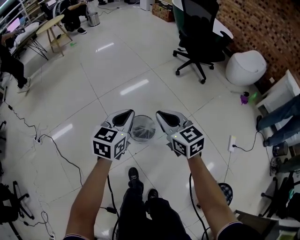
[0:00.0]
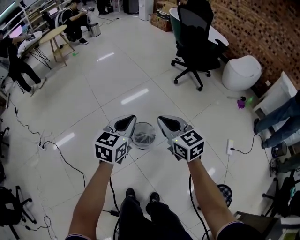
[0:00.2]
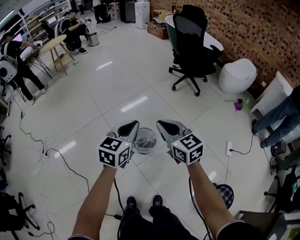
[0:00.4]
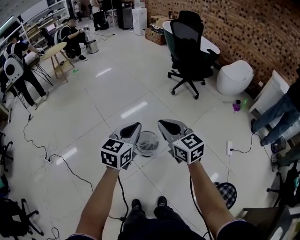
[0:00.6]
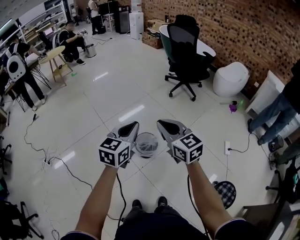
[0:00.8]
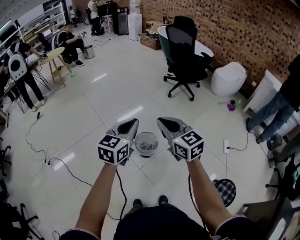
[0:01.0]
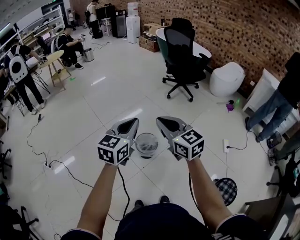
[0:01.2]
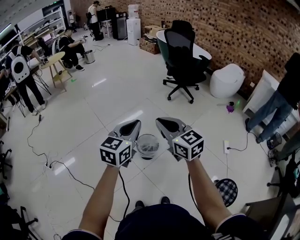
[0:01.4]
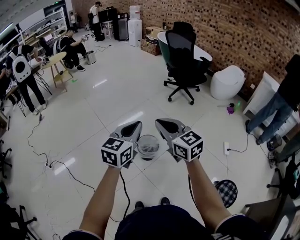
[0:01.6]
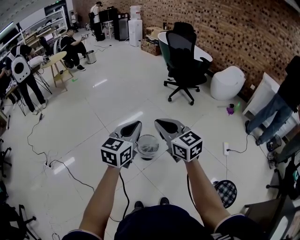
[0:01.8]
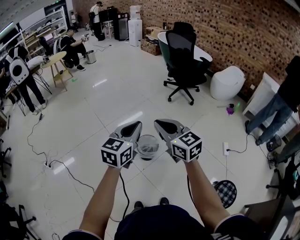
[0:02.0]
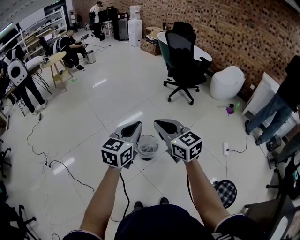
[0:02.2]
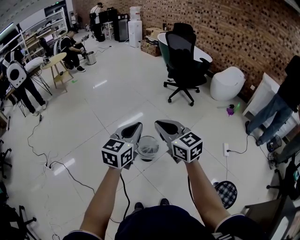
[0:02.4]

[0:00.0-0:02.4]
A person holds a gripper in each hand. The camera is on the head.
0:00.0 to 0:01.2: The two grippers go some 20 cm upward and backward.
0:01.2 to 0:02.4: The grippers stay close to where they were, moving slightly.

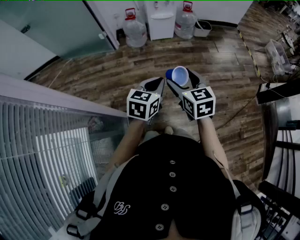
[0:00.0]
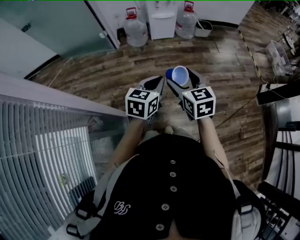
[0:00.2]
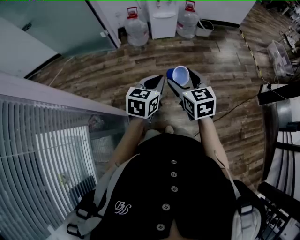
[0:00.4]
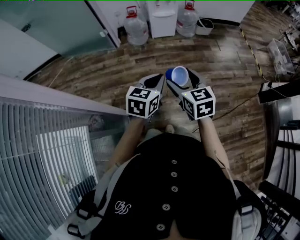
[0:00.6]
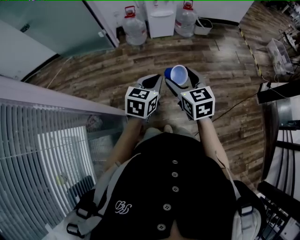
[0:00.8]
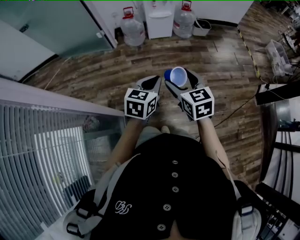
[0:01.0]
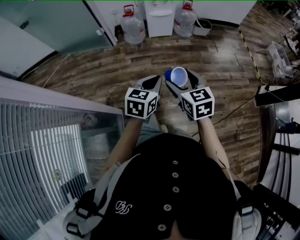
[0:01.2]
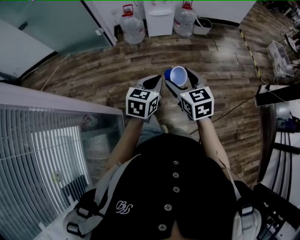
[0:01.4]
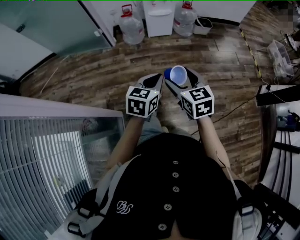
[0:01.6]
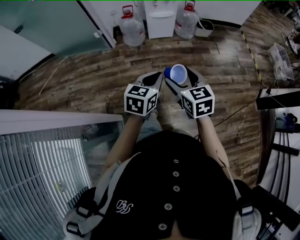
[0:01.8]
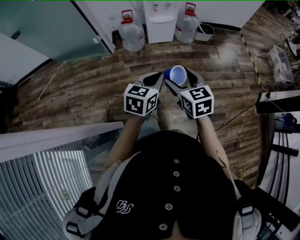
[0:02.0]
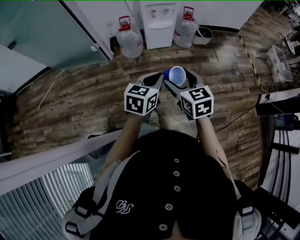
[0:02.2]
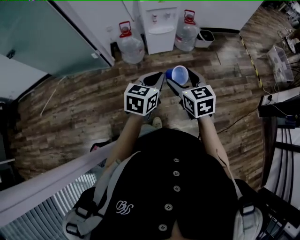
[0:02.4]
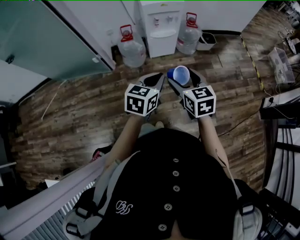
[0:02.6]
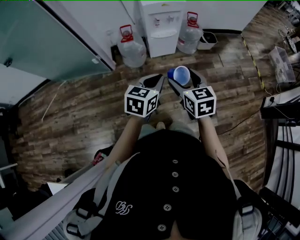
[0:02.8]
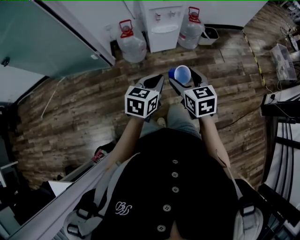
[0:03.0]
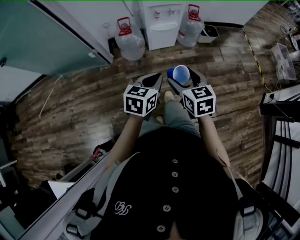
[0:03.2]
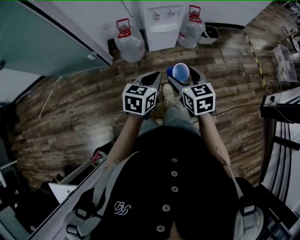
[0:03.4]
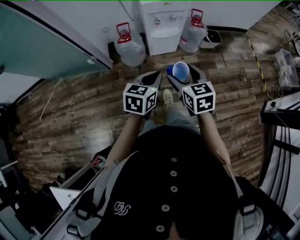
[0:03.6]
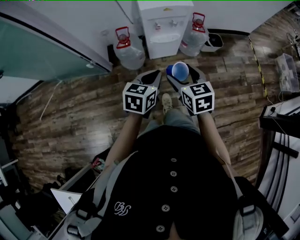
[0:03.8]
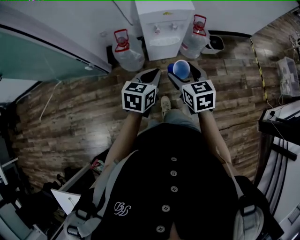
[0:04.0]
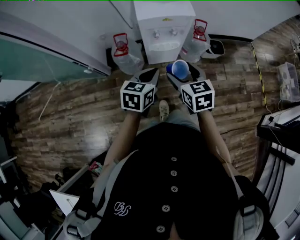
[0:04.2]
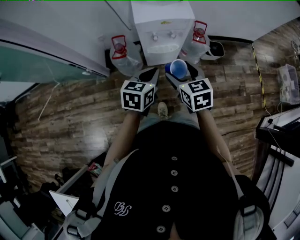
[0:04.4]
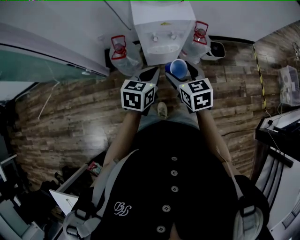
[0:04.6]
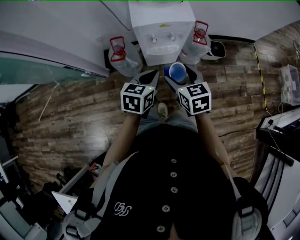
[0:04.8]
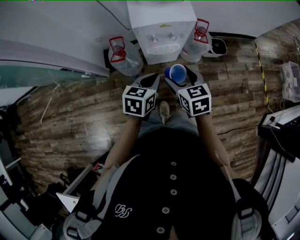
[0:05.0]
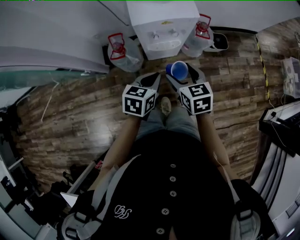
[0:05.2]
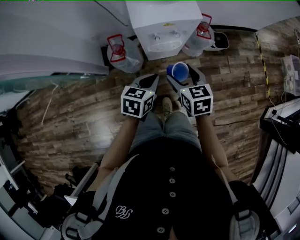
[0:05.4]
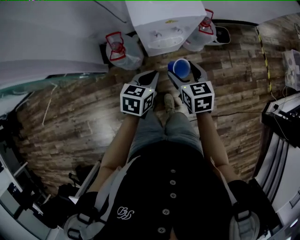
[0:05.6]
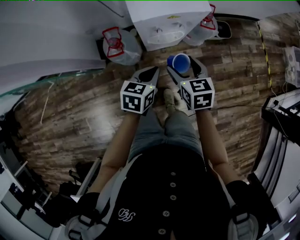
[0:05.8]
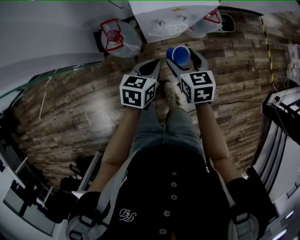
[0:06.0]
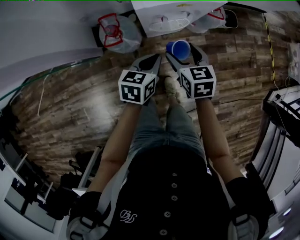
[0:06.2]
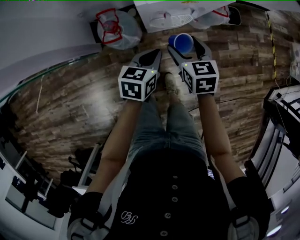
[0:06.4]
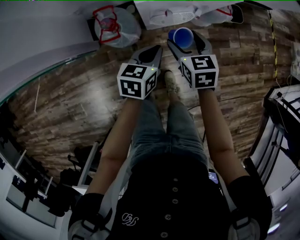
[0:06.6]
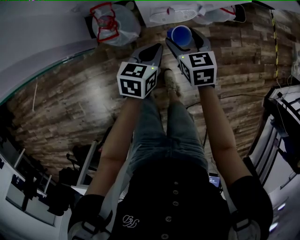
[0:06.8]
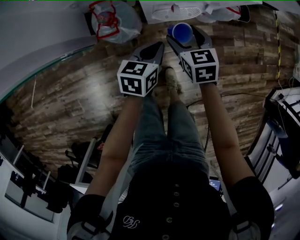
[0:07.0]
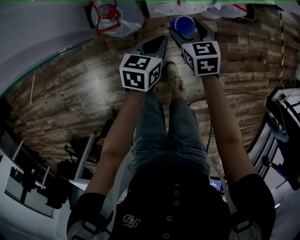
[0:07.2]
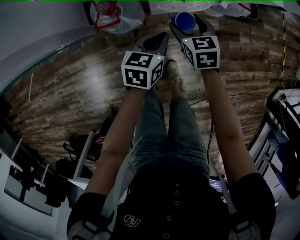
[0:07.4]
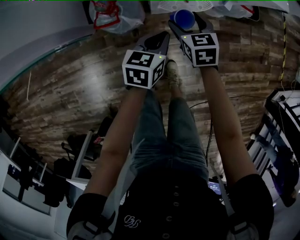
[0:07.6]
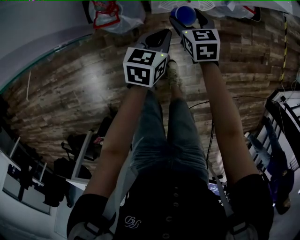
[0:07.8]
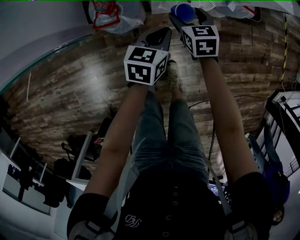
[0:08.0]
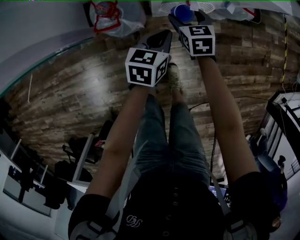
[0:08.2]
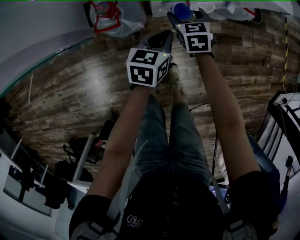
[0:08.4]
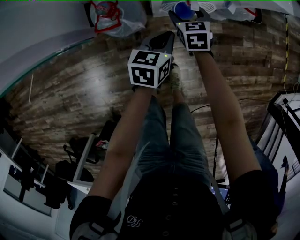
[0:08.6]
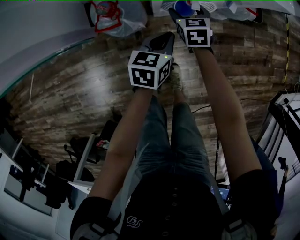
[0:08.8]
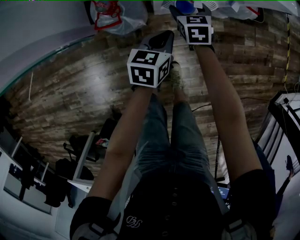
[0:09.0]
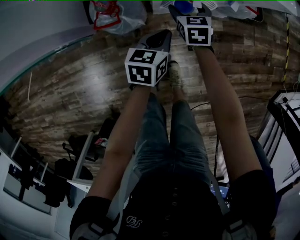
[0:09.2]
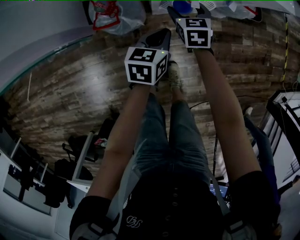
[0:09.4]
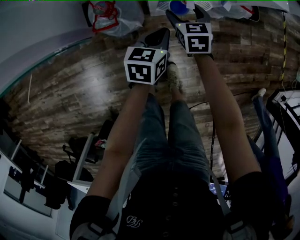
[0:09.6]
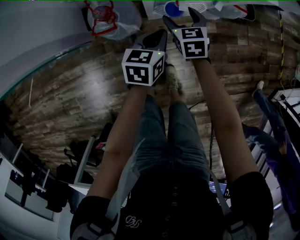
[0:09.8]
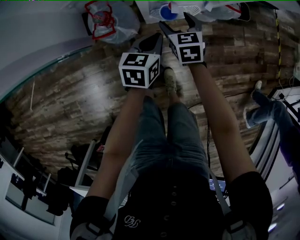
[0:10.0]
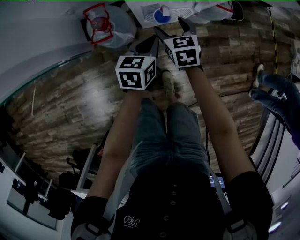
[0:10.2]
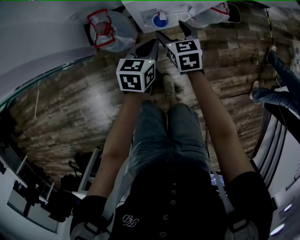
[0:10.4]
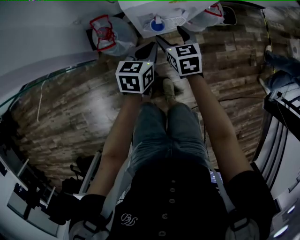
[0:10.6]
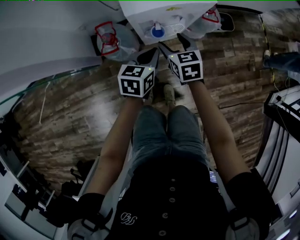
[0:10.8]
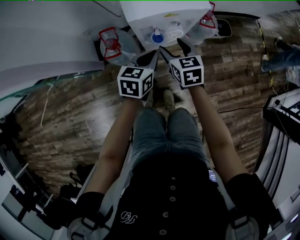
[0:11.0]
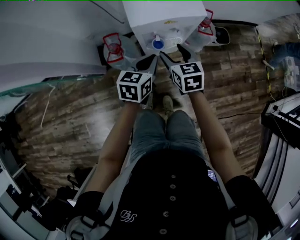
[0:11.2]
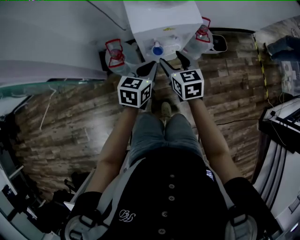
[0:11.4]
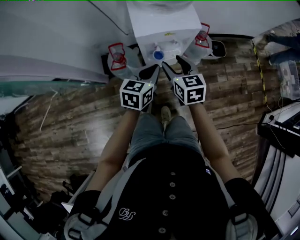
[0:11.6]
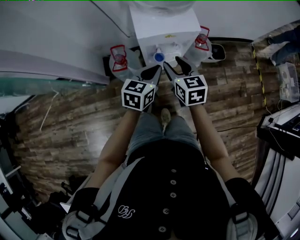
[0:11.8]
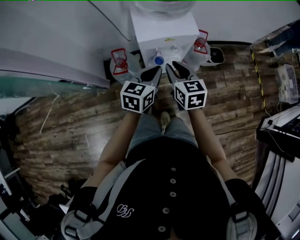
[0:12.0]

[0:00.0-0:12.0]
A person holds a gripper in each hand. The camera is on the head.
0:00.0 to 0:01.6: The right gripper changes place by approximately 5 cm. The left gripper travels forward by about 5 cm.
0:01.6 to 0:03.0: Both grippers move forward, roughly 30 cm.
0:03.0 to 0:04.4: Both grippers move forward, approximately 30 cm.
0:04.4 to 0:06.0: The two grippers go roughly 15 cm downward and forward.
0:06.0 to 0:07.6: The two grippers go about 20 cm downward.
0:07.6 to 0:09.0: The right gripper travels forward and downward by about 10 cm.
0:09.0 to 0:10.4: Both grippers travel together upward, some 10 cm.
0:10.4 to 0:12.0: The two grippers go approximately 20 cm upward. The right gripper closes its fingers.

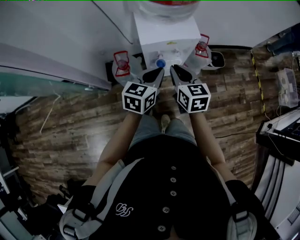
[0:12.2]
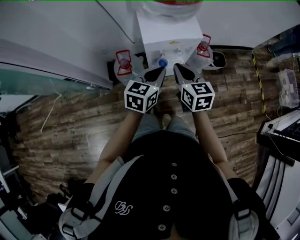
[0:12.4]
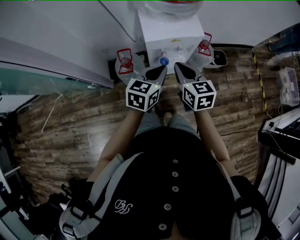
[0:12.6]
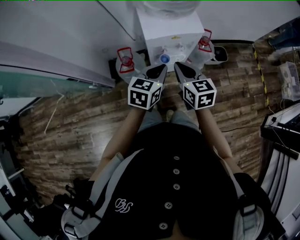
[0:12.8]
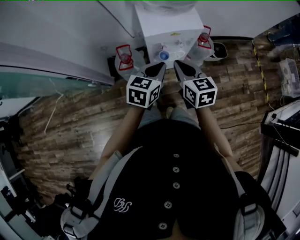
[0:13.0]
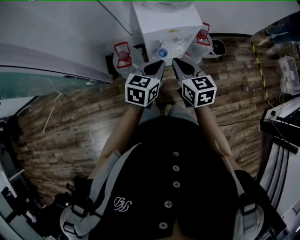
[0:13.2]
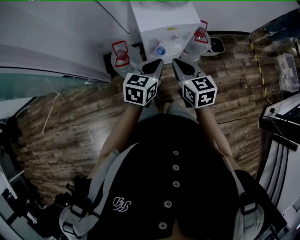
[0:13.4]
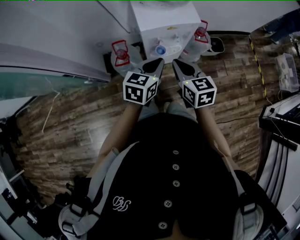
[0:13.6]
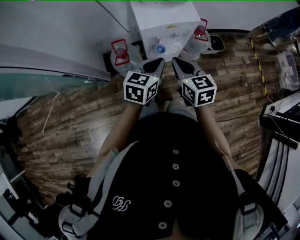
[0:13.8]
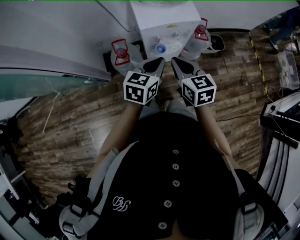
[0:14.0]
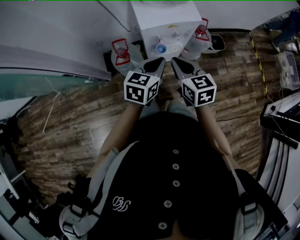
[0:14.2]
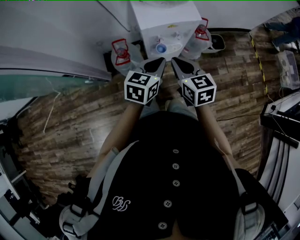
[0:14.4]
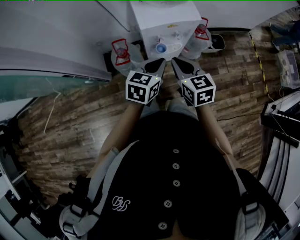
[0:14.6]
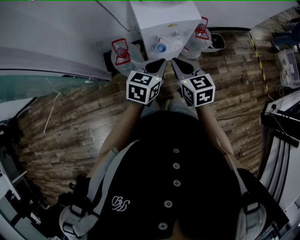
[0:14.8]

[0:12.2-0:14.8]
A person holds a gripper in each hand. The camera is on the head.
0:12.2 to 0:14.8: The grippers move only a little.

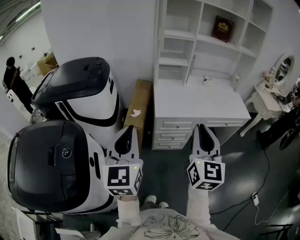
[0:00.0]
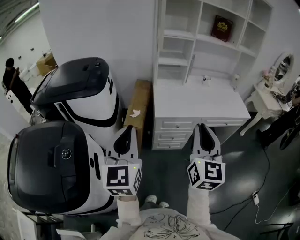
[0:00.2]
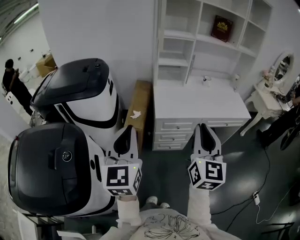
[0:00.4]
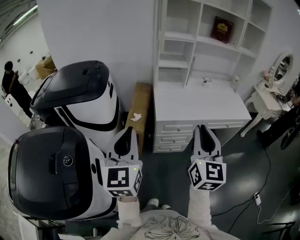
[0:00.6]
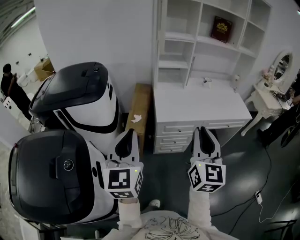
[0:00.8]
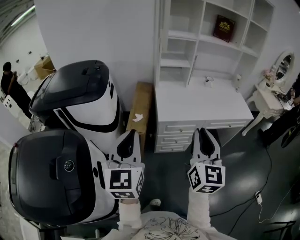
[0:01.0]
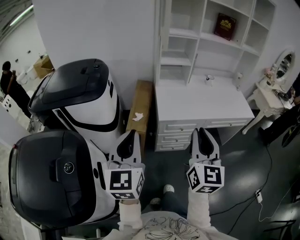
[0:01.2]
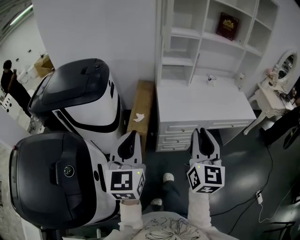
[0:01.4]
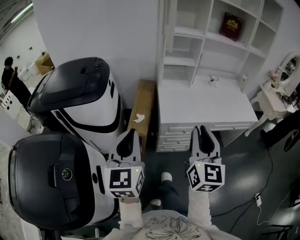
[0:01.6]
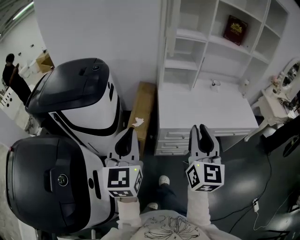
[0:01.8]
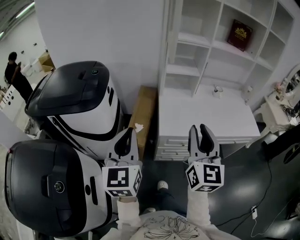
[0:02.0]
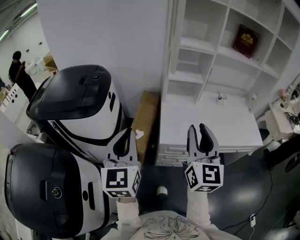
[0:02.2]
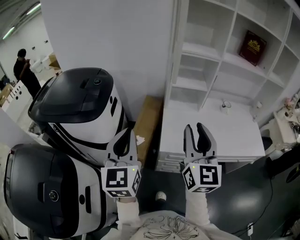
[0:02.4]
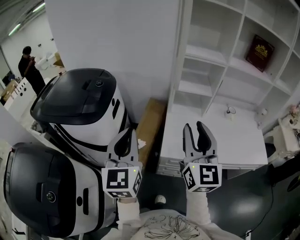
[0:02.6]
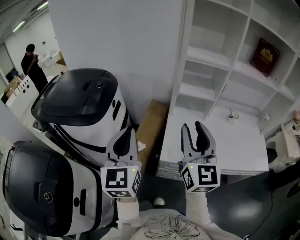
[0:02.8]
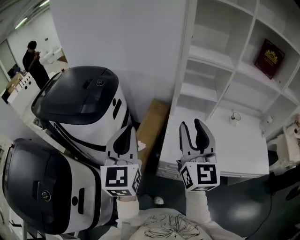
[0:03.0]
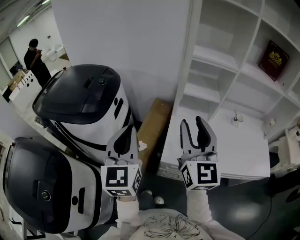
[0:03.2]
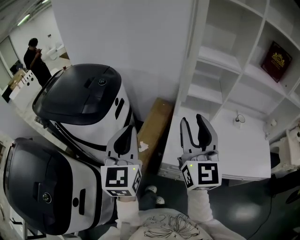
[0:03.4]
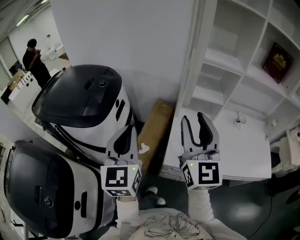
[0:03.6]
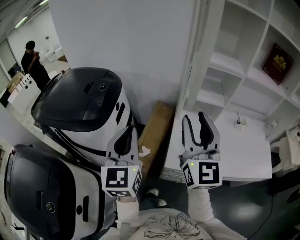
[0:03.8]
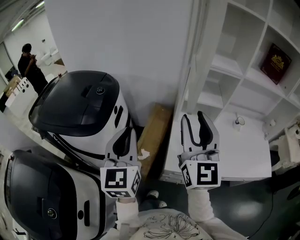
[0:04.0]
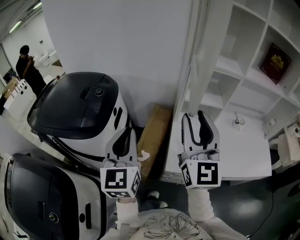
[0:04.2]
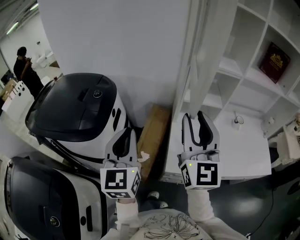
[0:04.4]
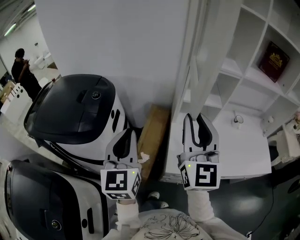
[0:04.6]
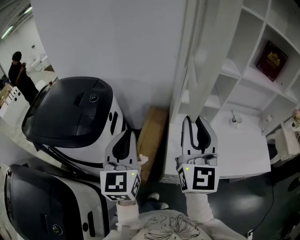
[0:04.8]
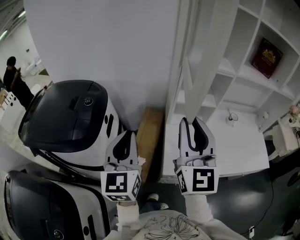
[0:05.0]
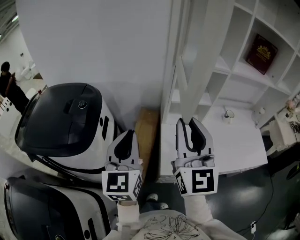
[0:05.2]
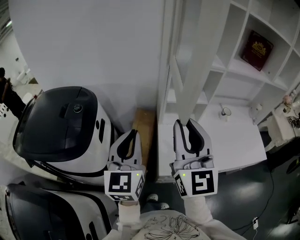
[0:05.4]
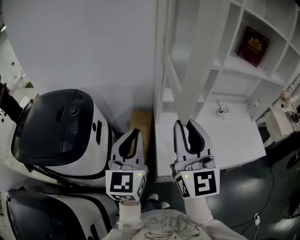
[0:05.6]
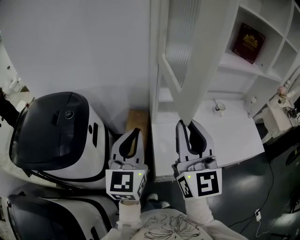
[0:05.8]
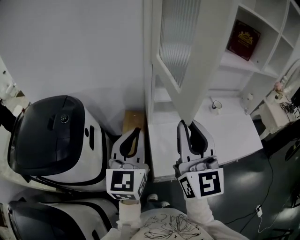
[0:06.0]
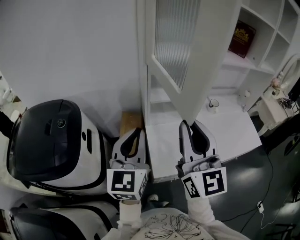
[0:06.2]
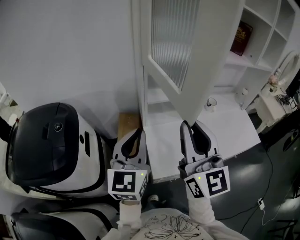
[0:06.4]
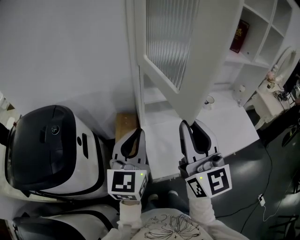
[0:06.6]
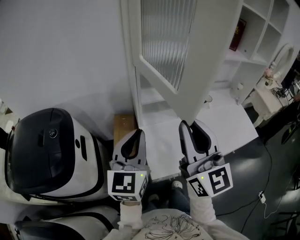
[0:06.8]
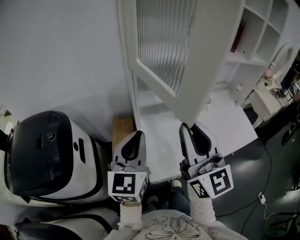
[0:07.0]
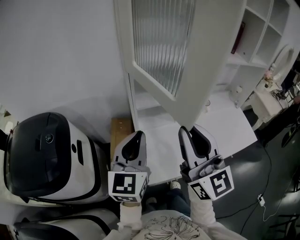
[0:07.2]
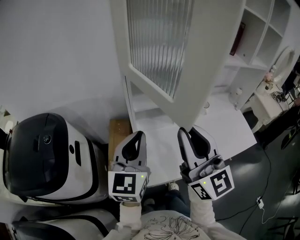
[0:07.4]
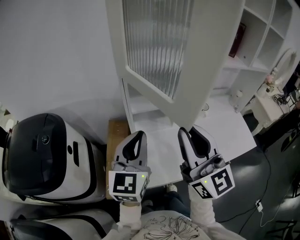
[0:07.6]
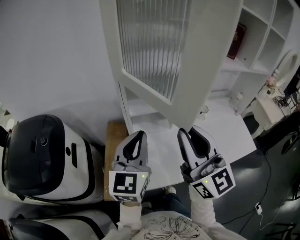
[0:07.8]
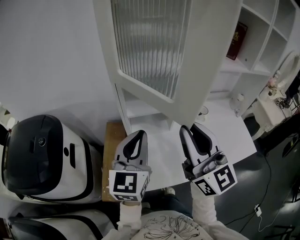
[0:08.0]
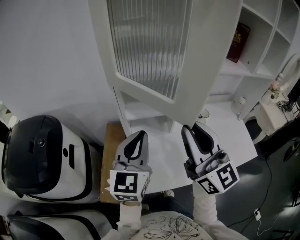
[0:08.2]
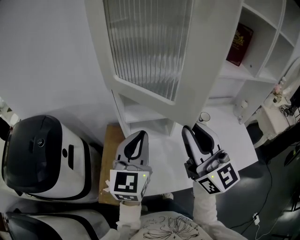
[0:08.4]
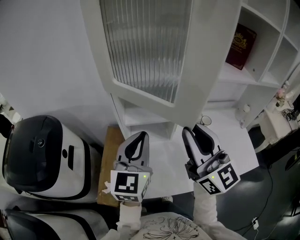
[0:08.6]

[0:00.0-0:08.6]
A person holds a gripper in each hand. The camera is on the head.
0:00.0 to 0:01.4: Both grippers move forward, approximately 5 cm.
0:01.4 to 0:02.8: The grippers both shift forward by some 25 cm. The right gripper turns by about 20 degrees.
0:02.8 to 0:04.4: Both grippers travel together forward, about 10 cm.
0:04.4 to 0:05.8: The left gripper shifts some 10 cm to the right and forward.
0:05.8 to 0:07.2: The left gripper is displaced to the right and forward by approximately 10 cm. Meanwhile the right gripper heads to the right, covering approximately 5 cm.
0:07.2 to 0:08.6: The grippers both shift to the right and forward by approximately 15 cm.
